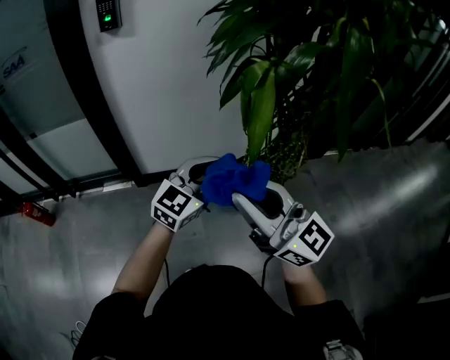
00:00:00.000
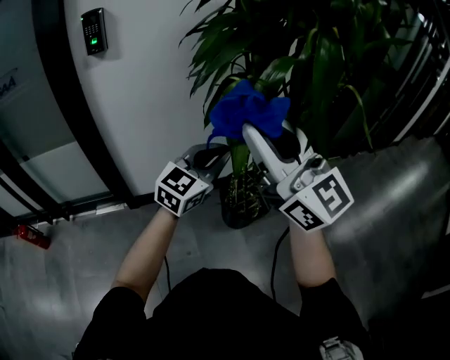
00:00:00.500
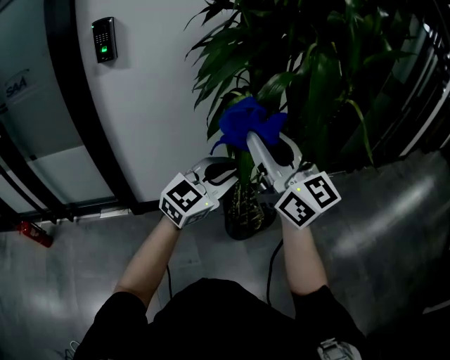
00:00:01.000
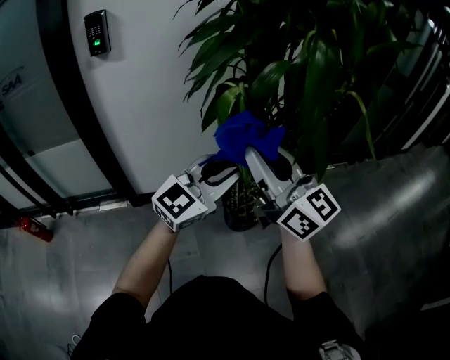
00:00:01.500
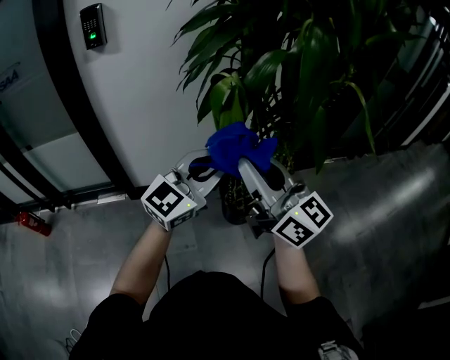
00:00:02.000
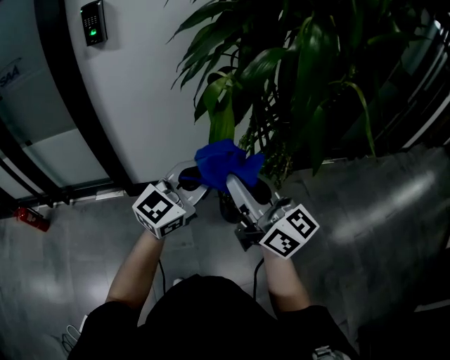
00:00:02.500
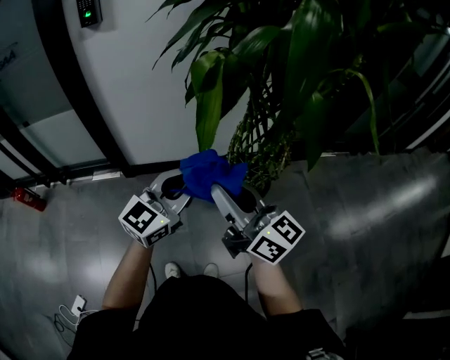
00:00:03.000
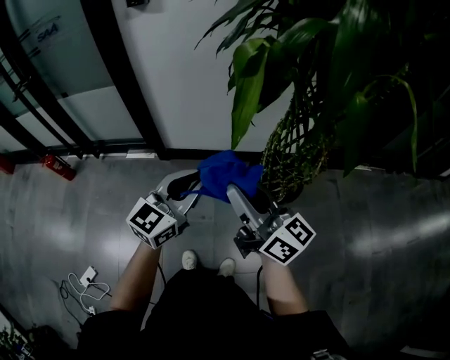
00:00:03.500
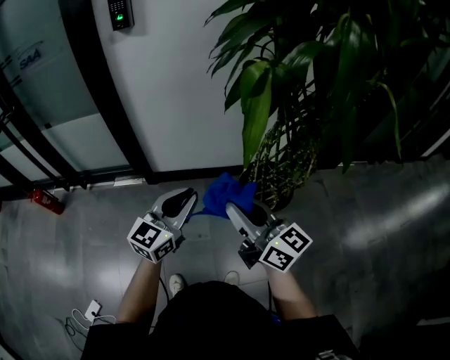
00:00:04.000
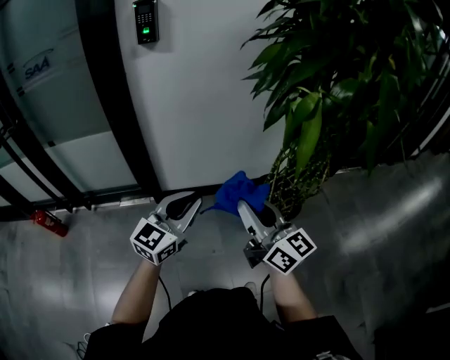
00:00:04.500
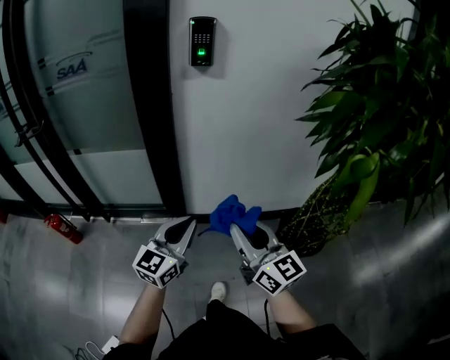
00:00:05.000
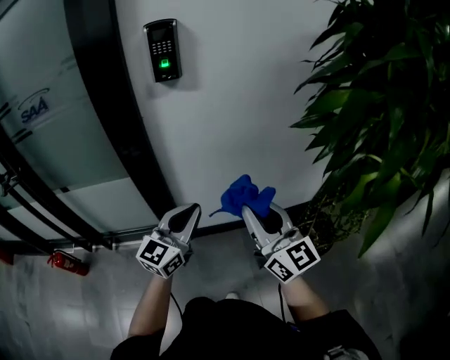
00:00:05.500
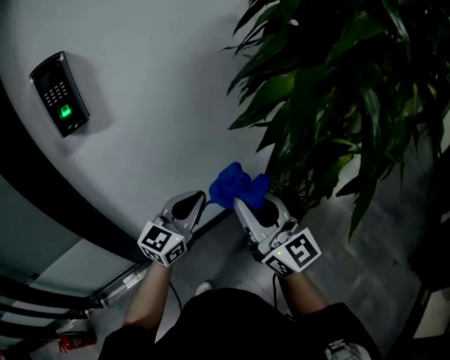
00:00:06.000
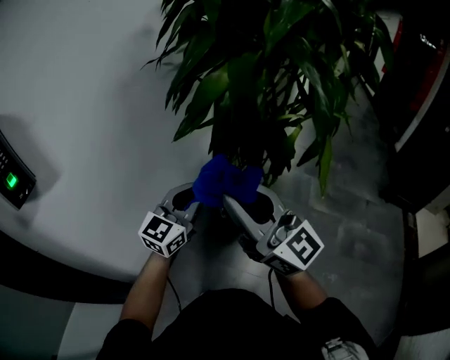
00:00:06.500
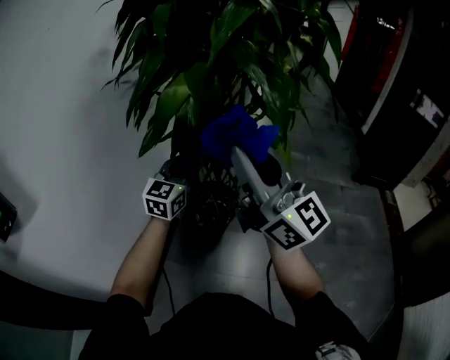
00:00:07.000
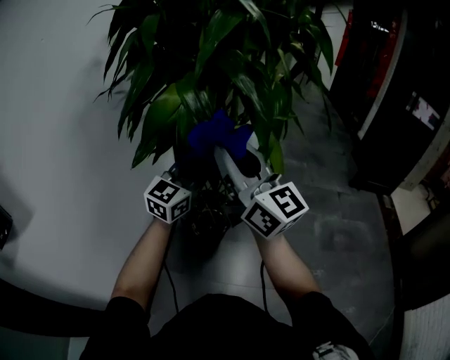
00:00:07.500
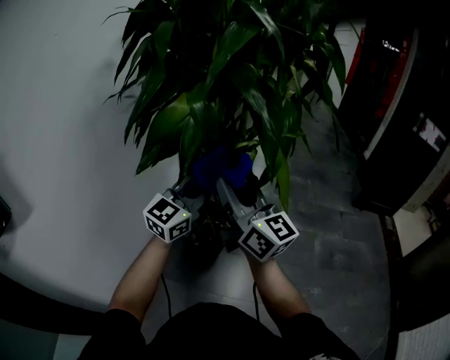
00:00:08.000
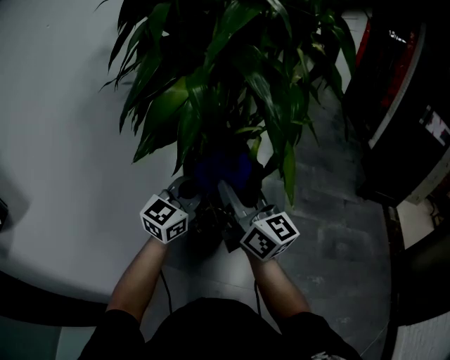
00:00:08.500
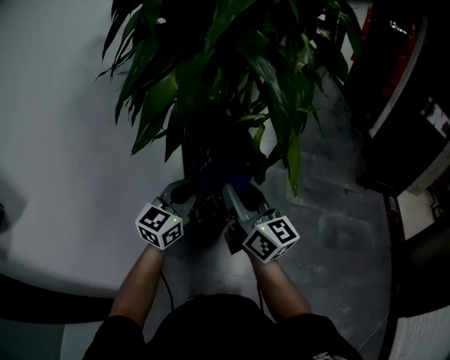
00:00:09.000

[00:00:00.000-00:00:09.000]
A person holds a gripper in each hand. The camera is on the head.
00:00:00.000 to 00:00:02.000: The right gripper travels forward and to the right by approximately 10 cm, and reaches roughly 15 cm upward, then returns. Meanwhile the left gripper shifts approximately 10 cm upward and to the right.
00:00:02.000 to 00:00:04.500: The left gripper heads to the left, covering roughly 25 cm, and rotates roughly 20 degrees; the right gripper is displaced to the left and downward by approximately 20 cm.
00:00:04.500 to 00:00:07.000: The left gripper changes place by some 35 cm, and turns by roughly 50 degrees. The right gripper heads upward, covering some 20 cm, and swivels some 70 degrees.
00:00:07.000 to 00:00:09.000: The right gripper travels downward and forward by some 20 cm, and rotates roughly 20 degrees; the left gripper moves backward, about 5 cm.

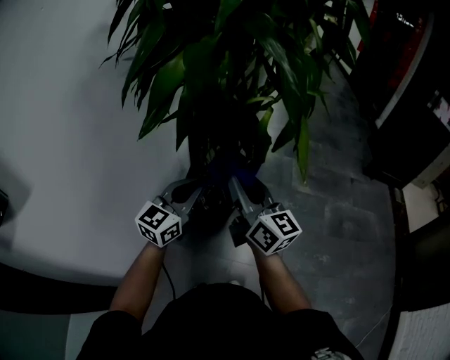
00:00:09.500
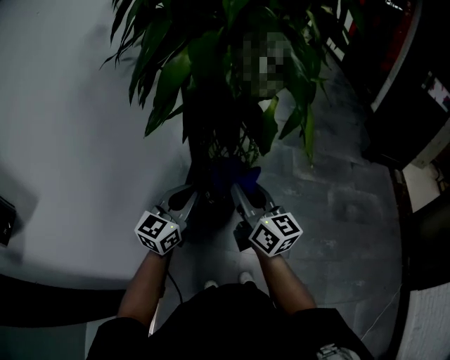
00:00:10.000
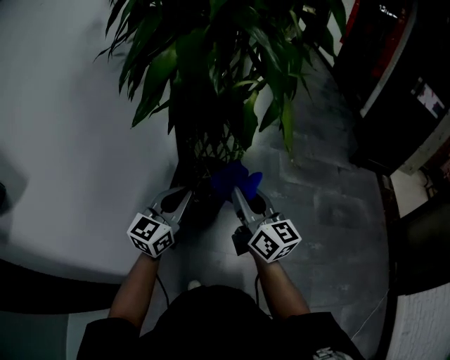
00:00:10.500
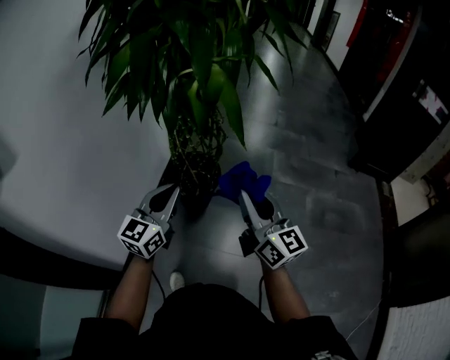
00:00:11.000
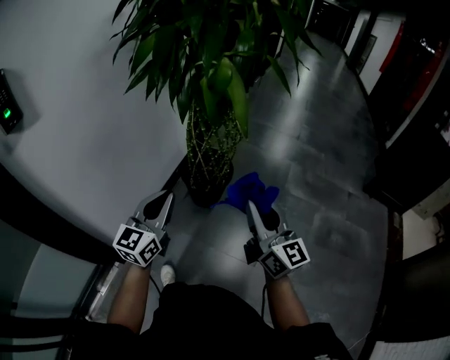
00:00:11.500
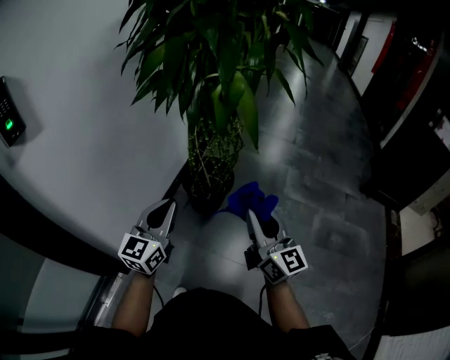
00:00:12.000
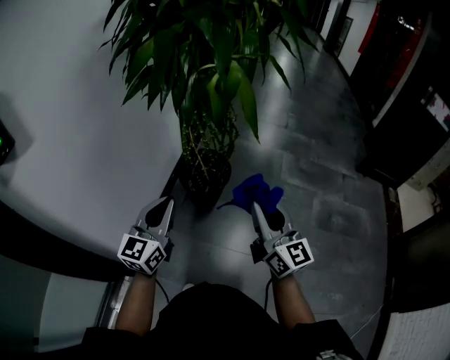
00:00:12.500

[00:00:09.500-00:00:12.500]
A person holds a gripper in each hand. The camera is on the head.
00:00:09.500 to 00:00:11.000: The right gripper moves to the right and backward, approximately 30 cm; the left gripper travels backward and to the right by some 20 cm.
00:00:11.000 to 00:00:12.500: The right gripper goes roughly 5 cm backward. Meanwhile the left gripper heads backward and to the left, covering approximately 10 cm.

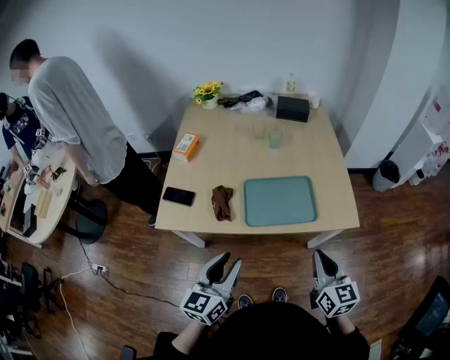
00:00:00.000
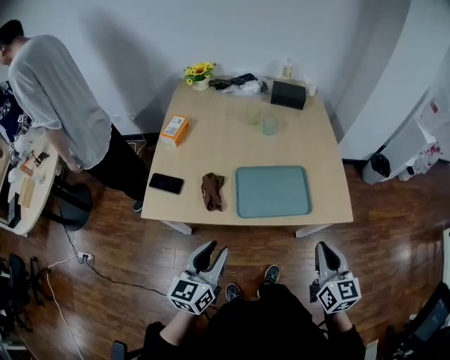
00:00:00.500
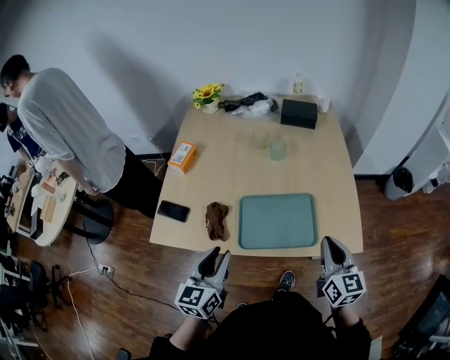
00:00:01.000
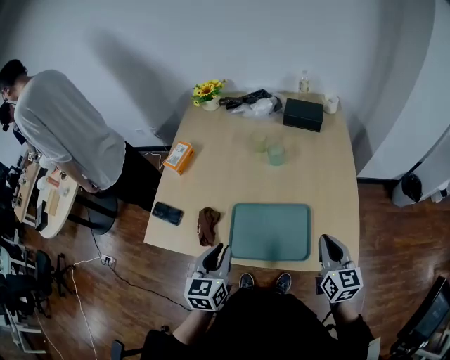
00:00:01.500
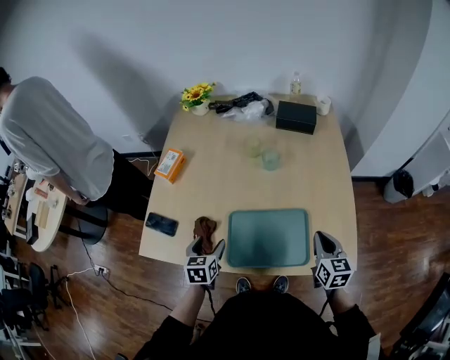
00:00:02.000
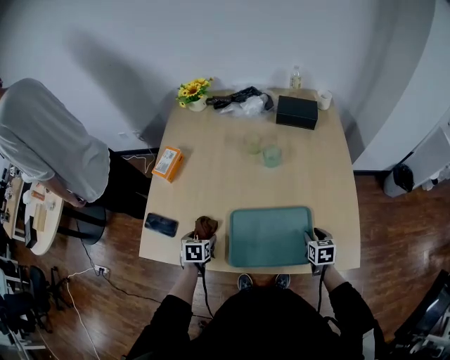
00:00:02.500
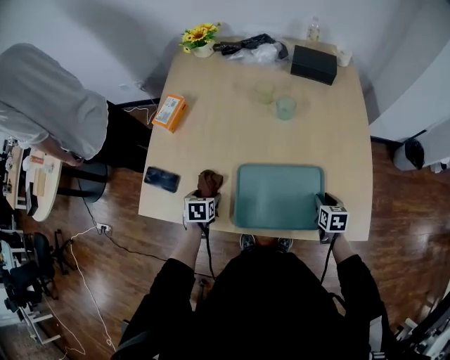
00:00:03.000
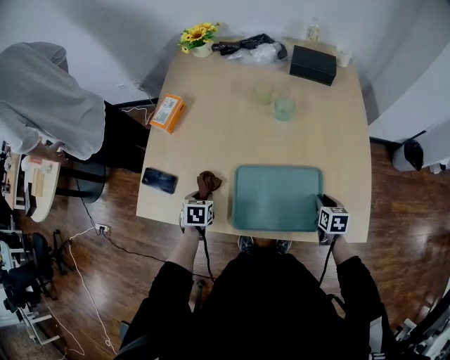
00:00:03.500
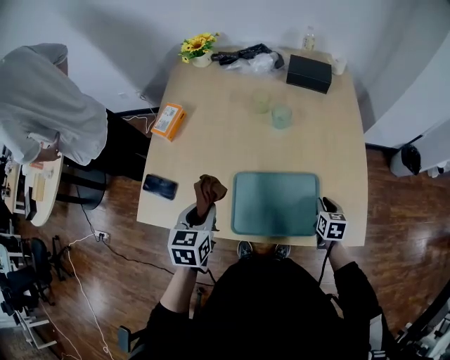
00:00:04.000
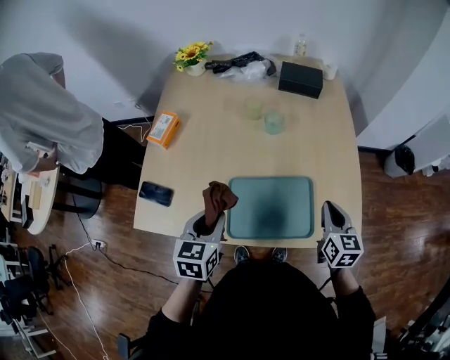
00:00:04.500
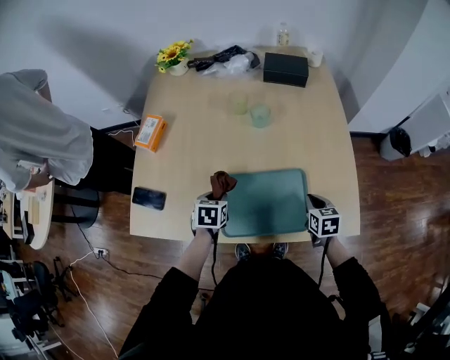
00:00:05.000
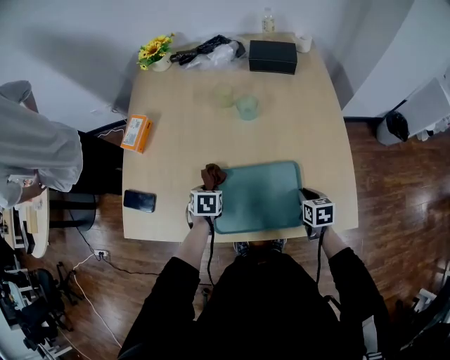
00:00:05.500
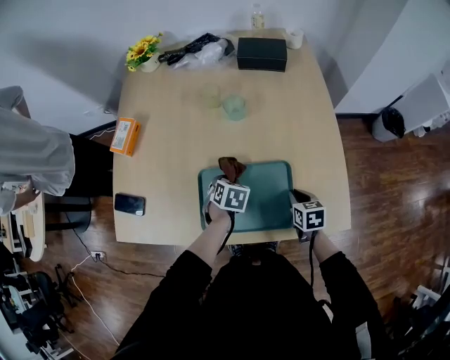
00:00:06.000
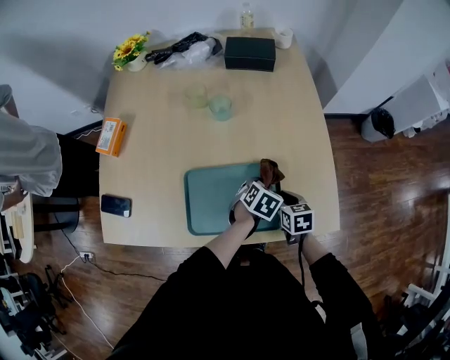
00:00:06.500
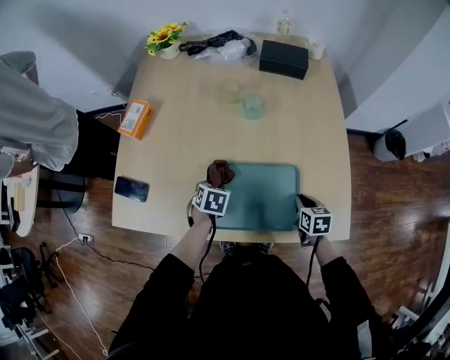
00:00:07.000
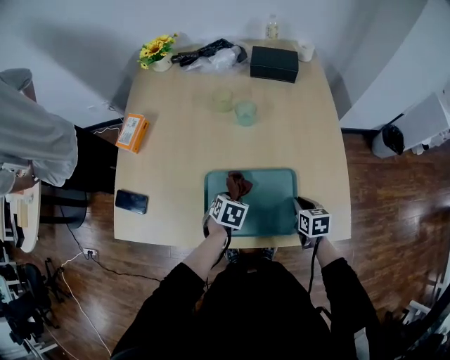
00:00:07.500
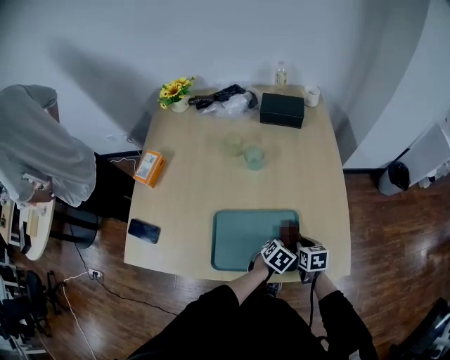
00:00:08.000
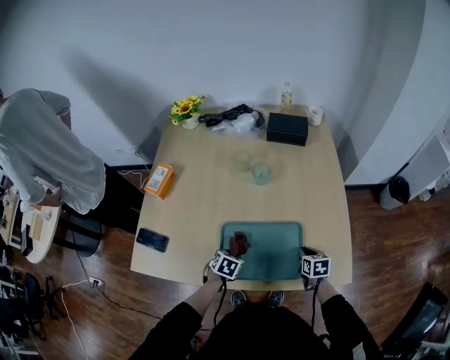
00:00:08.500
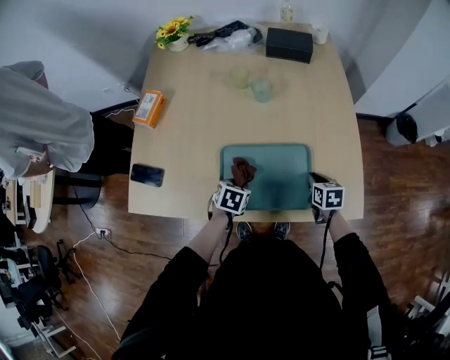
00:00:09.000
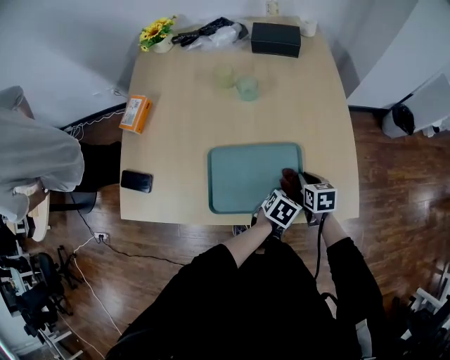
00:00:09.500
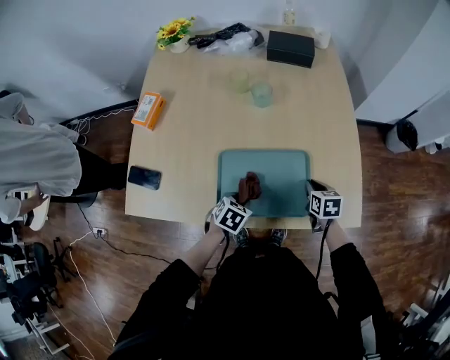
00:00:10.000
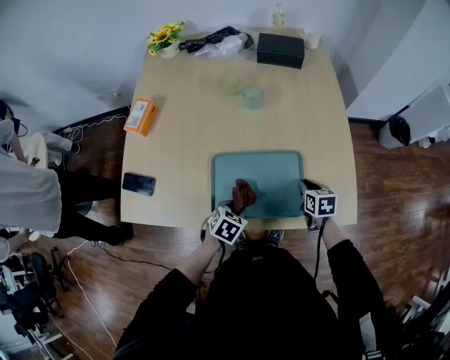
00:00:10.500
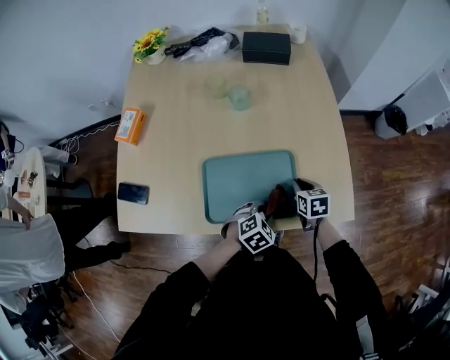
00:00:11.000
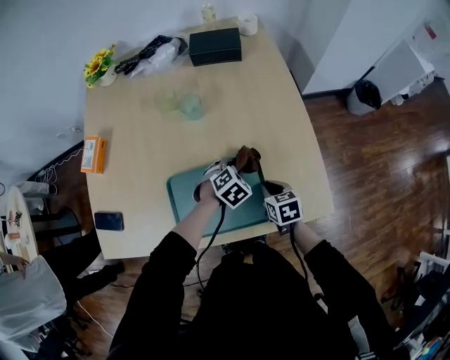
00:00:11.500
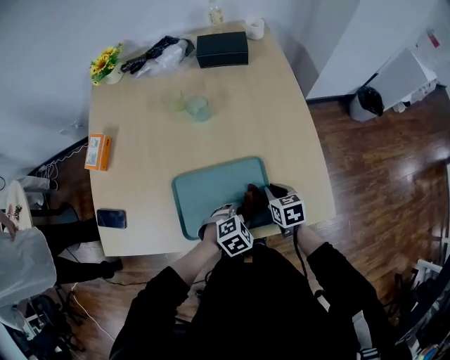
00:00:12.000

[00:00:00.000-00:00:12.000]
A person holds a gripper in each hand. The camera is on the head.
00:00:00.000 to 00:00:02.000: The left gripper travels forward and downward by about 30 cm, angles its fingers downward, by approximately 30 degrees, and opens up. The right gripper shifts some 30 cm forward.
00:00:02.000 to 00:00:04.000: The right gripper travels downward by roughly 15 cm, and rotates some 20 degrees; the left gripper shifts about 5 cm upward, and closes up.
00:00:04.000 to 00:00:06.000: The left gripper travels to the right, downward and forward by approximately 25 cm, and turns by about 30 degrees, while the right gripper travels upward and back again, about 15 cm each way.
00:00:06.000 to 00:00:08.000: The left gripper swings left and right, roughly 25 cm each way, with 2 reversals, and swivels some 30 degrees.
00:00:08.000 to 00:00:10.000: The left gripper moves left and right over approximately 25 cm, changing direction 2 times.
00:00:10.000 to 00:00:12.000: The left gripper heads to the right, covering some 15 cm, moves roughly 20 cm forward and comes back, and twists about 40 degrees clockwise, seen from behind.

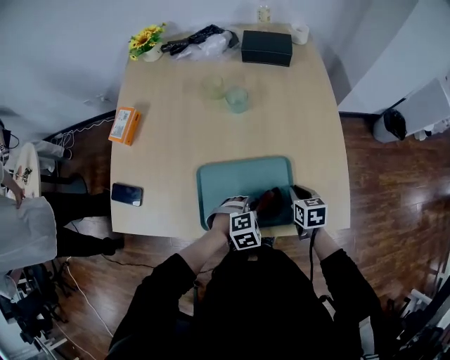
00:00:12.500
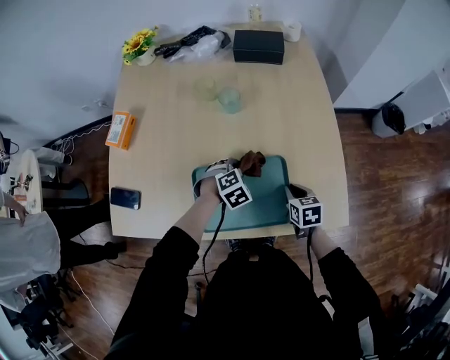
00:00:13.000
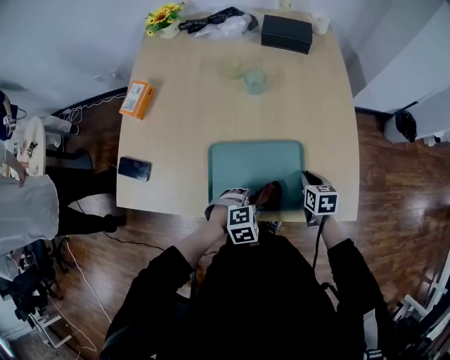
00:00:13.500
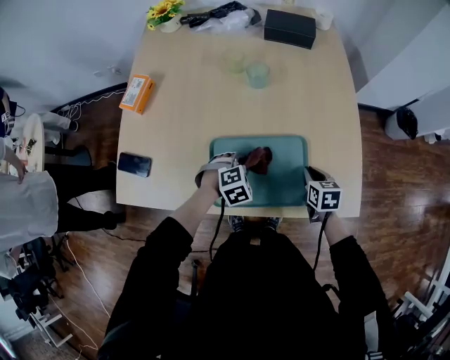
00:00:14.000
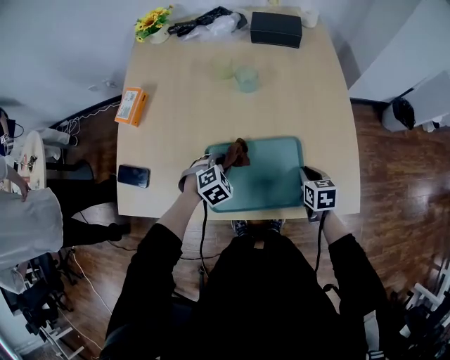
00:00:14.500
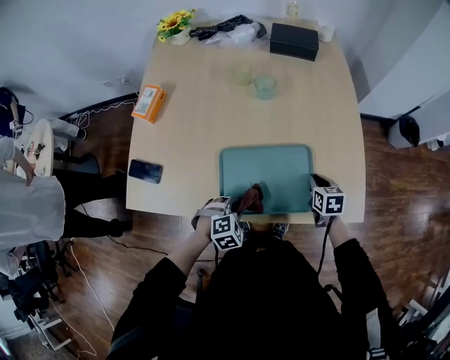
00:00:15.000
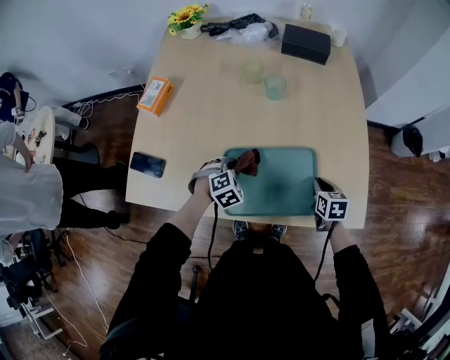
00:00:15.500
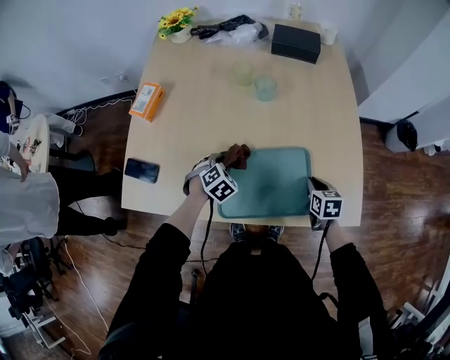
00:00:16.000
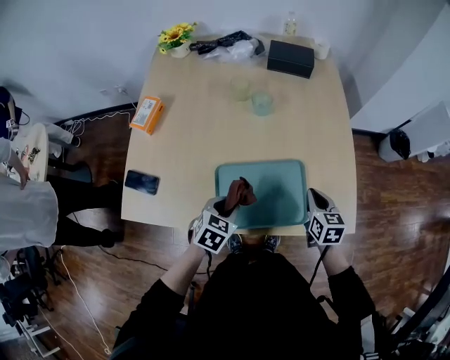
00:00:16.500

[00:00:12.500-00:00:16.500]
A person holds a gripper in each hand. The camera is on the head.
00:00:12.500 to 00:00:14.500: The left gripper moves forward and backward over roughly 15 cm, changing direction 2 times.
00:00:14.500 to 00:00:16.500: The left gripper goes forward and backward, some 15 cm each way, reversing 2 times, and swivels roughly 40 degrees; the right gripper moves upward, about 10 cm.
